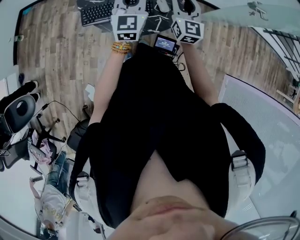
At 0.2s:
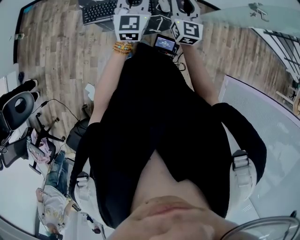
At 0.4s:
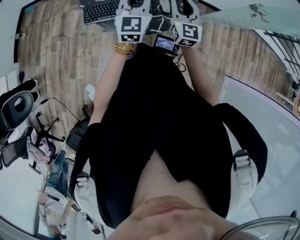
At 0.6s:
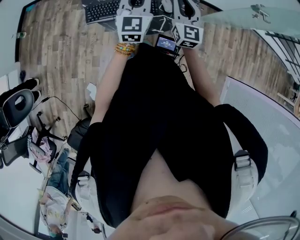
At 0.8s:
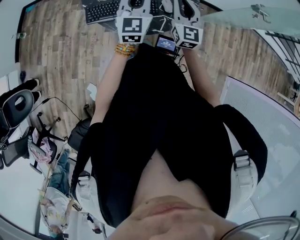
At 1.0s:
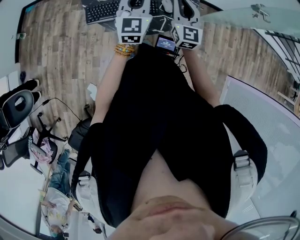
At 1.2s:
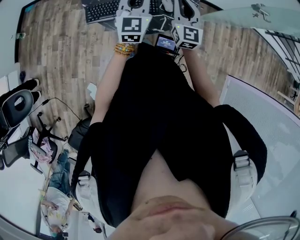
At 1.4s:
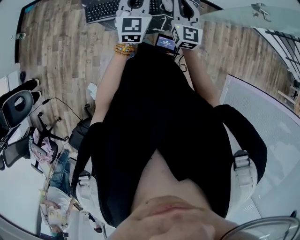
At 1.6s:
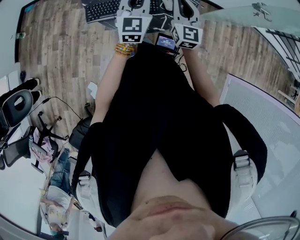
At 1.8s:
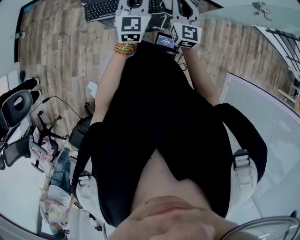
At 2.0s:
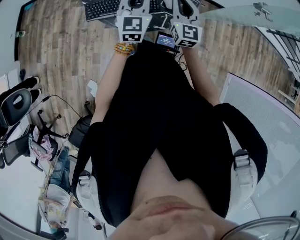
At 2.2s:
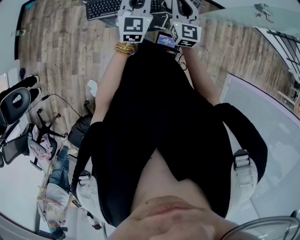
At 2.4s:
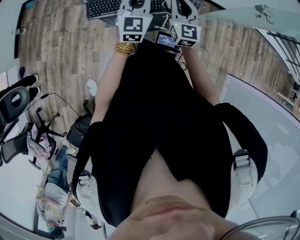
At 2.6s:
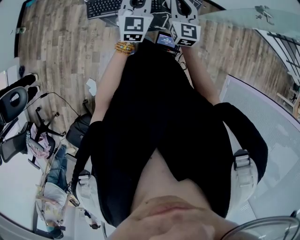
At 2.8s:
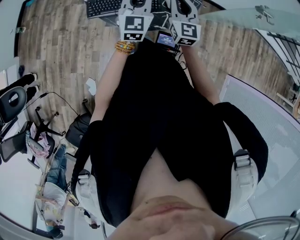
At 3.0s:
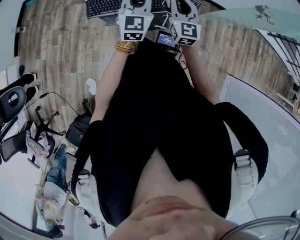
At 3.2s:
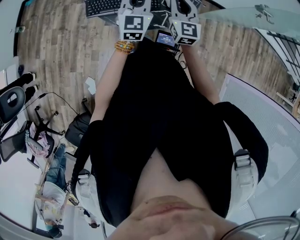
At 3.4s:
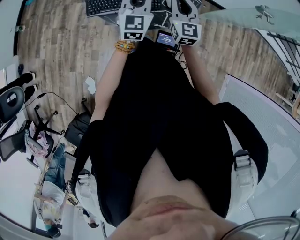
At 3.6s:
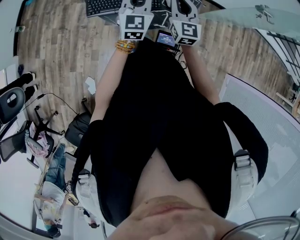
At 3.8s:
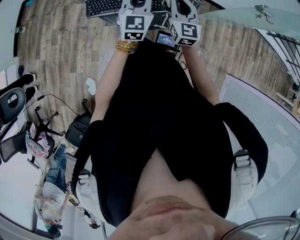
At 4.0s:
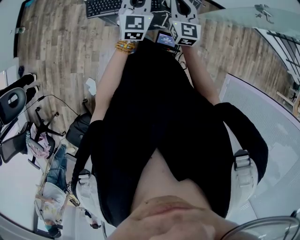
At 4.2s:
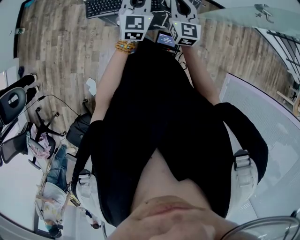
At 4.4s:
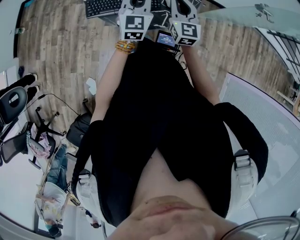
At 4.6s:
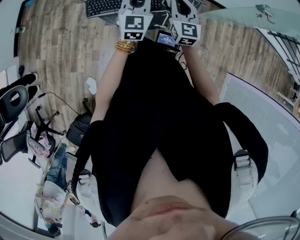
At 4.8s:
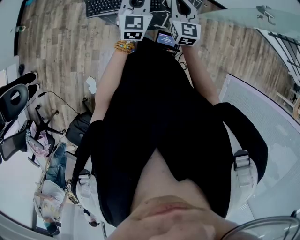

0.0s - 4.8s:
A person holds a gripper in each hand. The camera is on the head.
0.0s - 3.2s: The grippers stay close to where they were, moving slightly.
3.2s - 4.8s: The grippers move only a little.

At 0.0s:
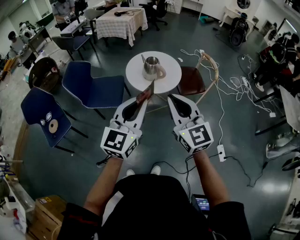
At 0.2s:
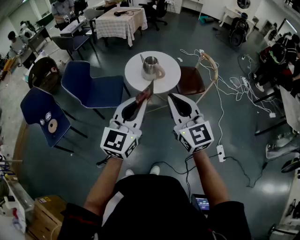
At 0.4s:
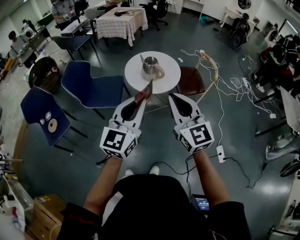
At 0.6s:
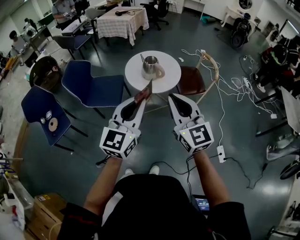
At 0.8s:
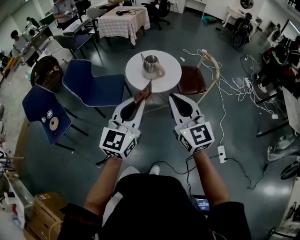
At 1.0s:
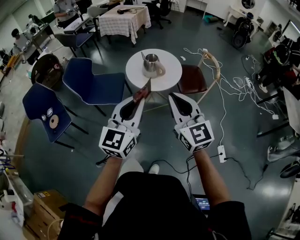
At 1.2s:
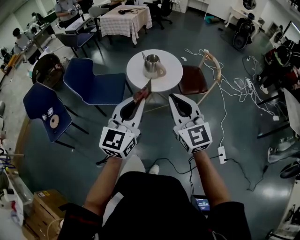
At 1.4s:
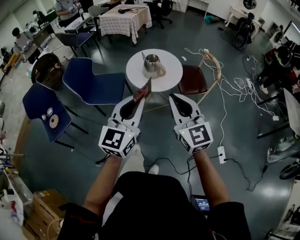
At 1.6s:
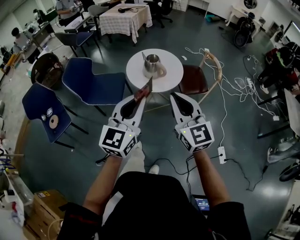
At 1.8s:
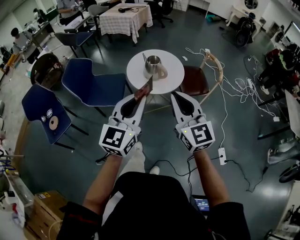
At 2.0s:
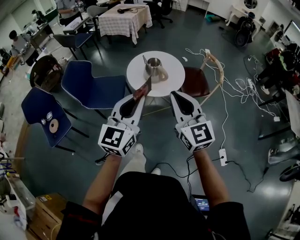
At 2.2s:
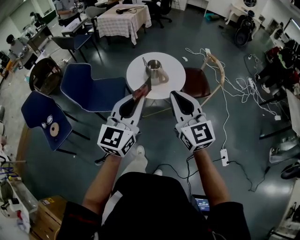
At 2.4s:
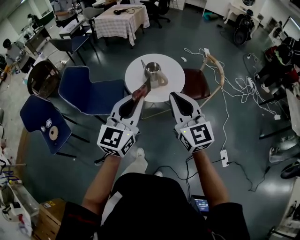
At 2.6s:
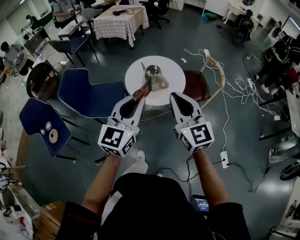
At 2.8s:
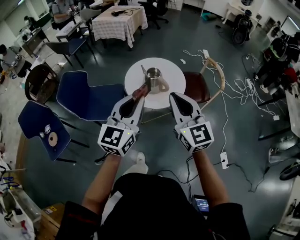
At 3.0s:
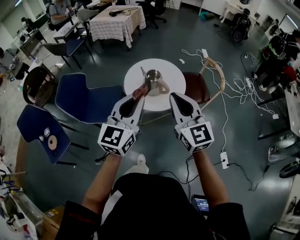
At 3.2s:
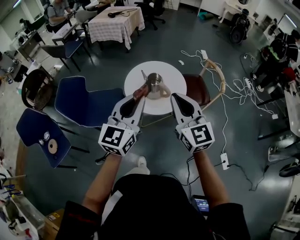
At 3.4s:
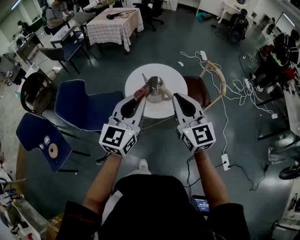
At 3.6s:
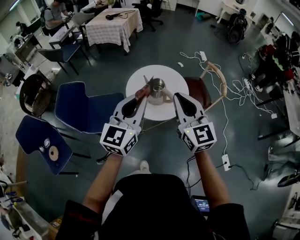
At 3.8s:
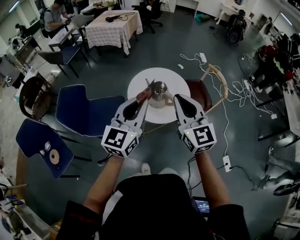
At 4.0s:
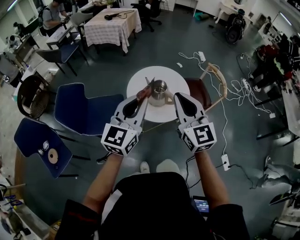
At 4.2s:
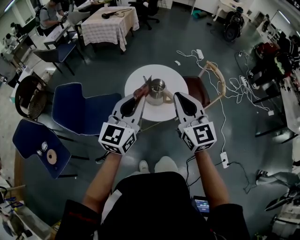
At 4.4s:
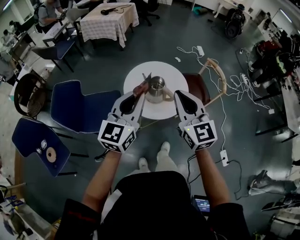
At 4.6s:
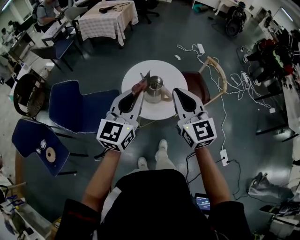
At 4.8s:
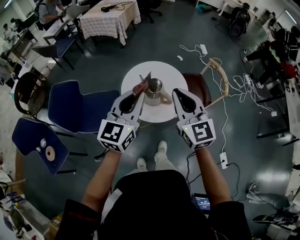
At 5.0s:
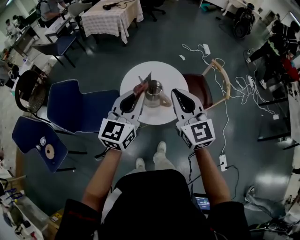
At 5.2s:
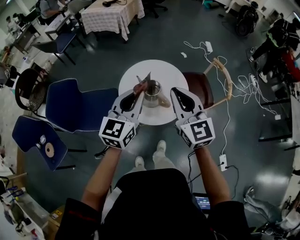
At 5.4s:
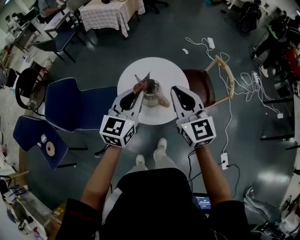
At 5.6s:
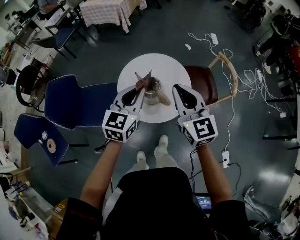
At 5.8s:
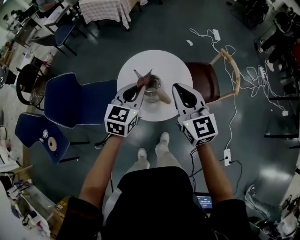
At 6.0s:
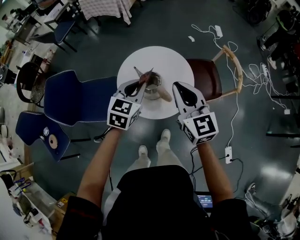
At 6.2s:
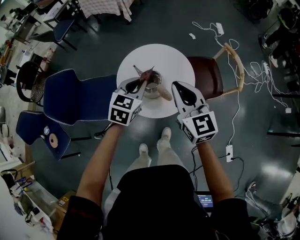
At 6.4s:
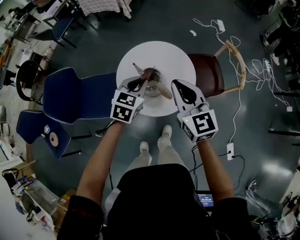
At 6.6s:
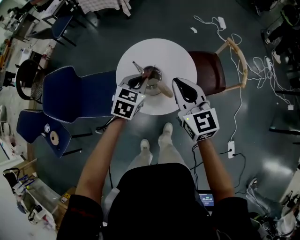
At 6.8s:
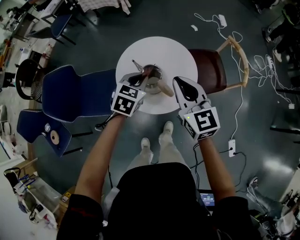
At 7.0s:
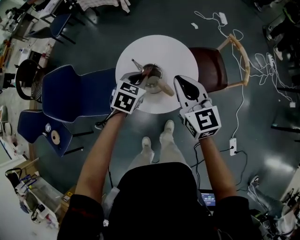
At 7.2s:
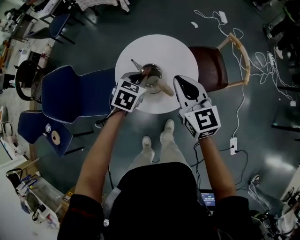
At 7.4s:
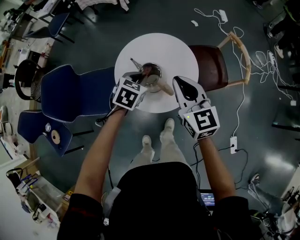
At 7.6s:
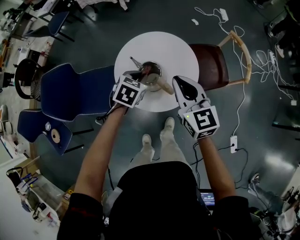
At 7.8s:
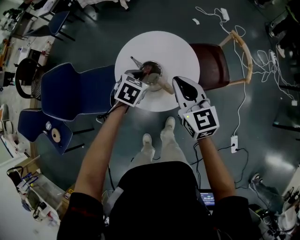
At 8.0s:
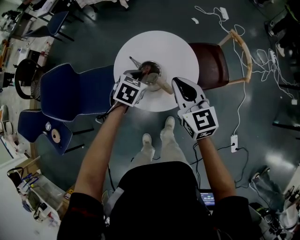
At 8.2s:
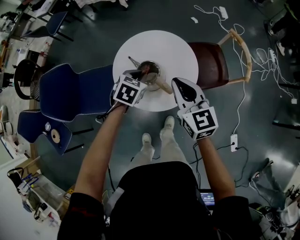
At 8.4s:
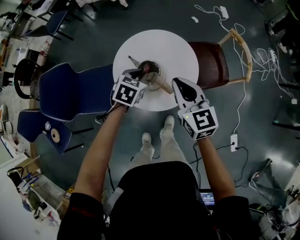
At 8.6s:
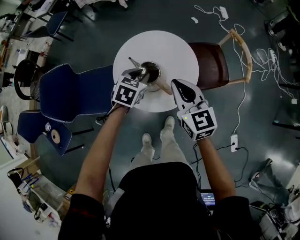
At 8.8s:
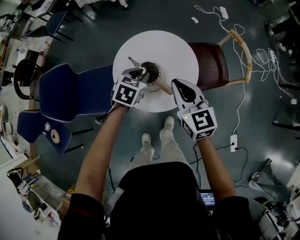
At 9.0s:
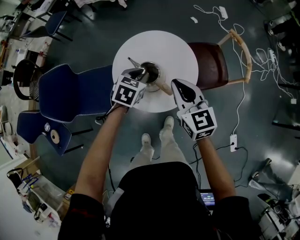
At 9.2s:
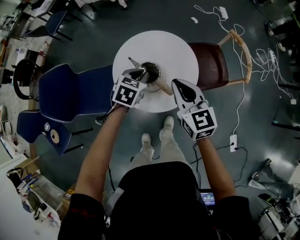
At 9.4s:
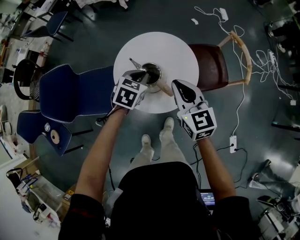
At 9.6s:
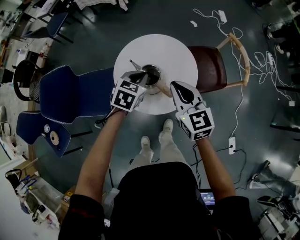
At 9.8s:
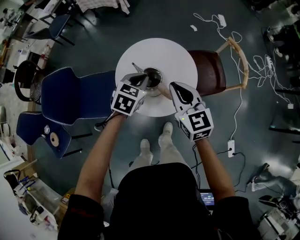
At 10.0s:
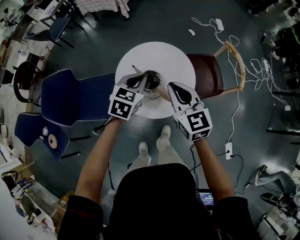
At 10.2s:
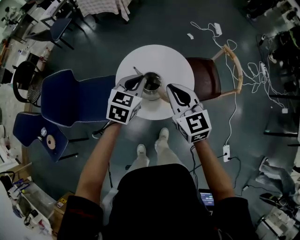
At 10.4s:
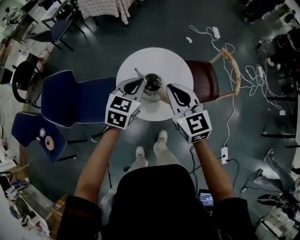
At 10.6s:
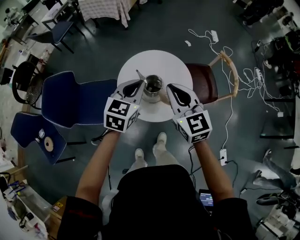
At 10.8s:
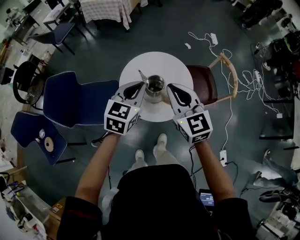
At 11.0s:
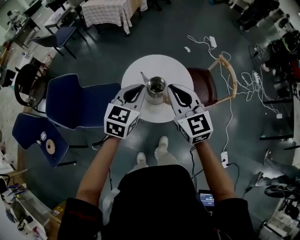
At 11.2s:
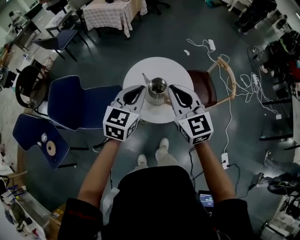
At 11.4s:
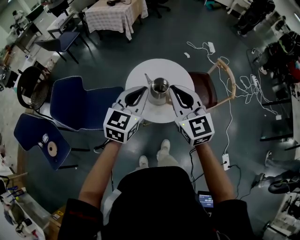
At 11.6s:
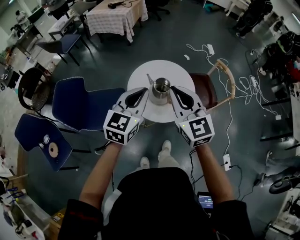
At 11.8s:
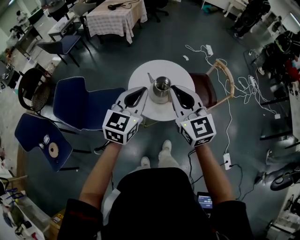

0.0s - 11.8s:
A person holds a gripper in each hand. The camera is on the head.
0.0s - 1.4s: The grippers make only small movements.
1.4s - 3.0s: The two grippers go about 25 cm forward.
3.0s - 4.4s: Both grippers travel together forward and to the left, about 15 cm.
4.4s - 6.0s: The grippers both shift forward, downward and to the right by roughly 30 cm. The left gripper tilts its fingers some 30 degrees downward.
6.0s - 7.4s: The left gripper goes approximately 10 cm downward, and changes its angle by about 20 degrees, while the right gripper is displaced downward by some 5 cm.
7.4s - 8.8s: The grippers move only a little.
8.8s - 10.4s: The left gripper travels upward by approximately 15 cm, and swivels some 20 degrees. The right gripper heads upward and to the left, covering approximately 10 cm.
10.4s - 11.8s: The two grippers go roughly 20 cm backward, upward and to the left.

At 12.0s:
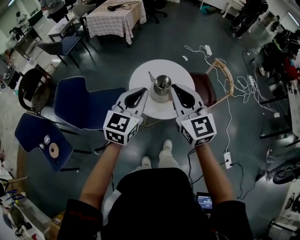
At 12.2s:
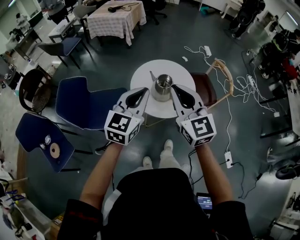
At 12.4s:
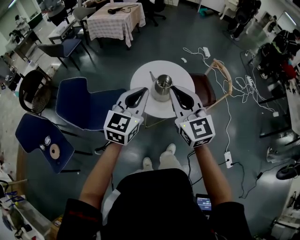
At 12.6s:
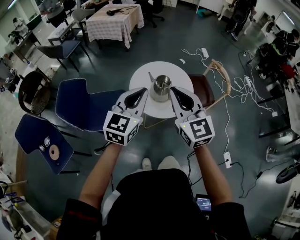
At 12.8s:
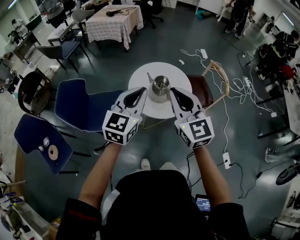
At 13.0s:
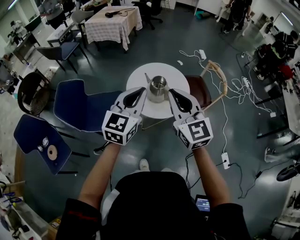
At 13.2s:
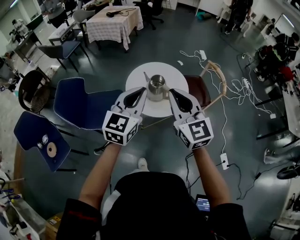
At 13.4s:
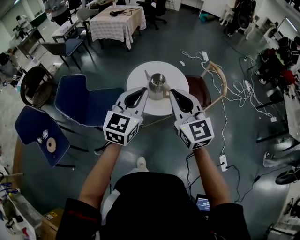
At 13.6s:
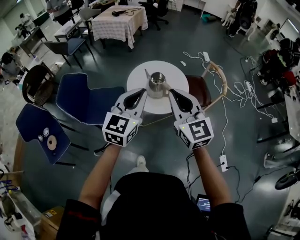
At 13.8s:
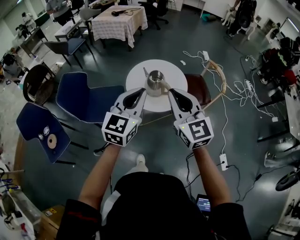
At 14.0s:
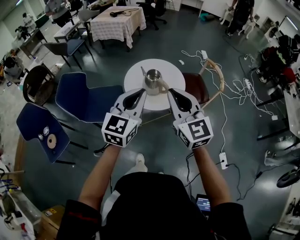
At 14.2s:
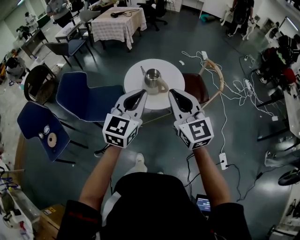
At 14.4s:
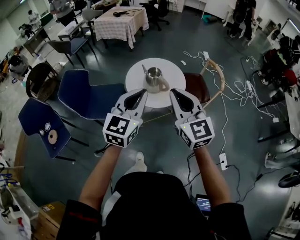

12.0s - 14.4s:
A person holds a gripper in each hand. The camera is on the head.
12.0s - 13.2s: Both grippers move backward, roughly 10 cm.
13.2s - 14.4s: The two grippers go approximately 15 cm backward and to the right.

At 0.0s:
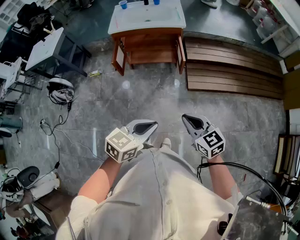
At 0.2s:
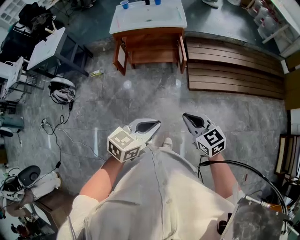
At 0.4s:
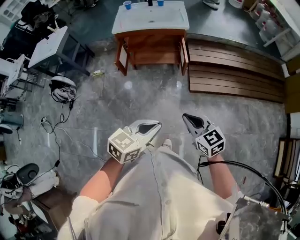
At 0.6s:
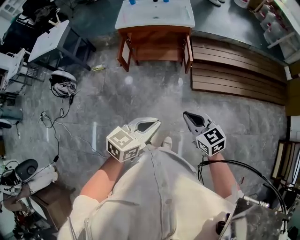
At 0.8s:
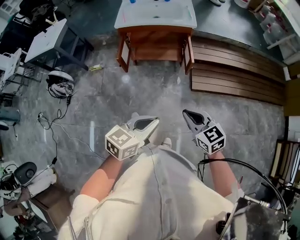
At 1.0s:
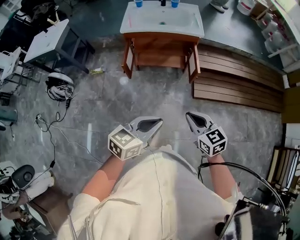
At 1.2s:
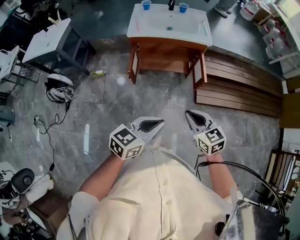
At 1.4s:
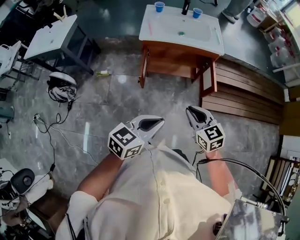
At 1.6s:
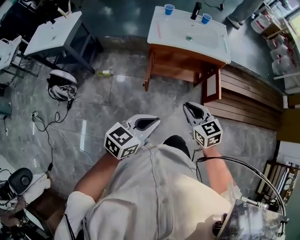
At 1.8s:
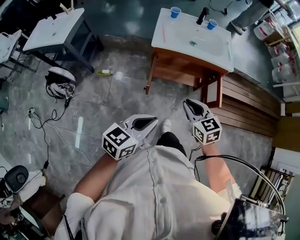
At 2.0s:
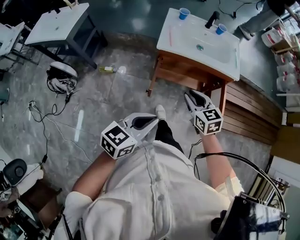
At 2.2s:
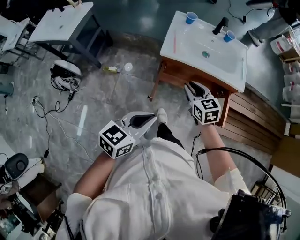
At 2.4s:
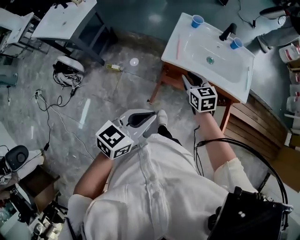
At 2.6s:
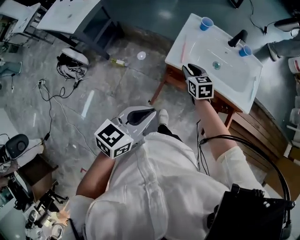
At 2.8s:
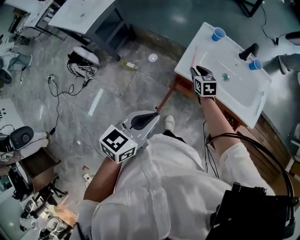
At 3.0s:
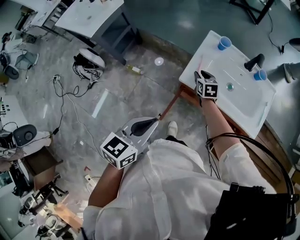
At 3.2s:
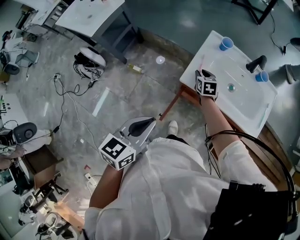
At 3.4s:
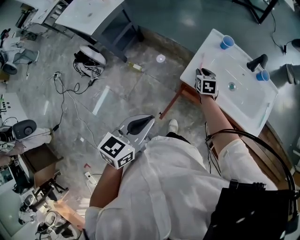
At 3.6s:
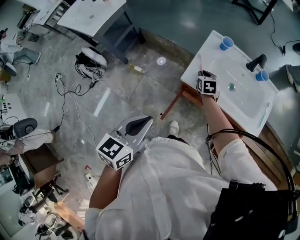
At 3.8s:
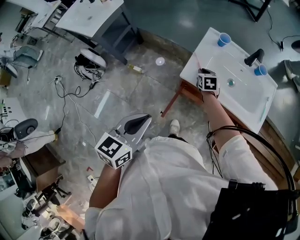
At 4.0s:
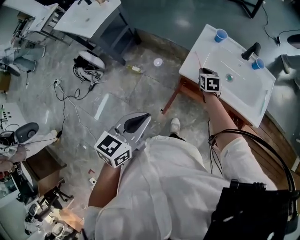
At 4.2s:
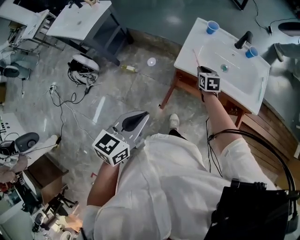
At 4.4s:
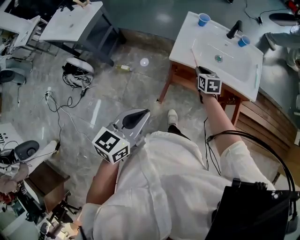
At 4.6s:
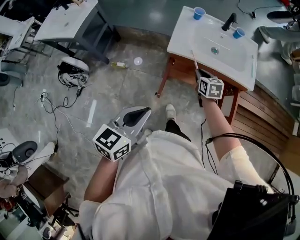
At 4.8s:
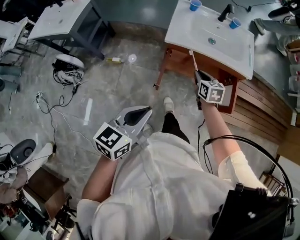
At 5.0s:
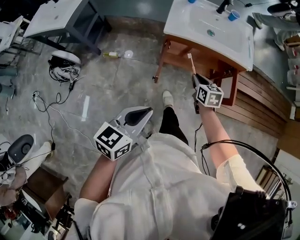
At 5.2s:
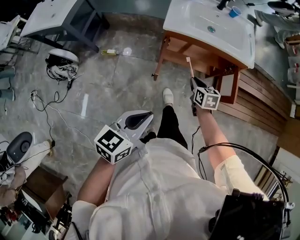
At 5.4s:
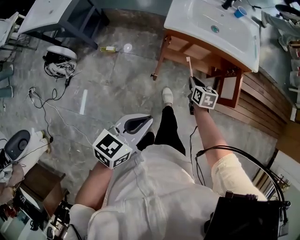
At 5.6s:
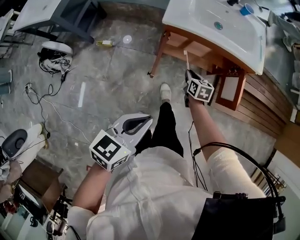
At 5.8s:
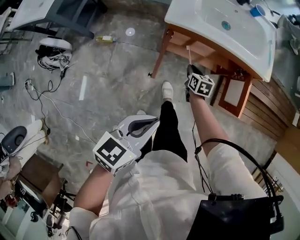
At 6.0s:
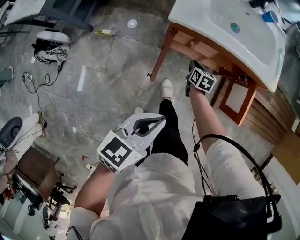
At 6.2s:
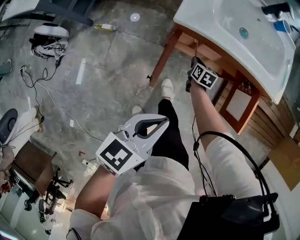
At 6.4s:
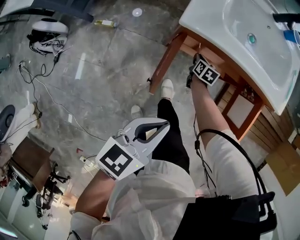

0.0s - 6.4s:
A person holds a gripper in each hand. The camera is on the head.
0.0s - 1.6s: The two grippers go about 35 cm to the left and forward.
1.6s - 3.2s: The right gripper heads forward, covering some 50 cm, and opens up. Meanwhile the left gripper heads forward, covering roughly 30 cm, and turns by some 40 degrees.
3.2s - 4.8s: The left gripper heads backward, covering approximately 15 cm; the right gripper travels backward by roughly 25 cm.
4.8s - 6.4s: The left gripper shifts approximately 20 cm downward and forward, while the right gripper heads downward, covering roughly 35 cm, and swivels about 20 degrees.
